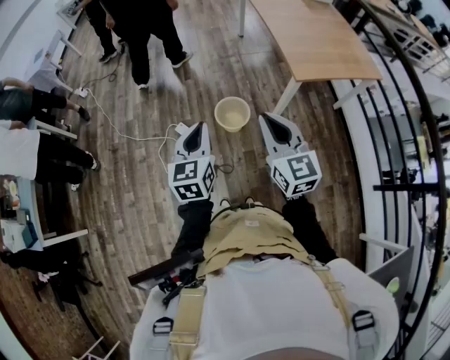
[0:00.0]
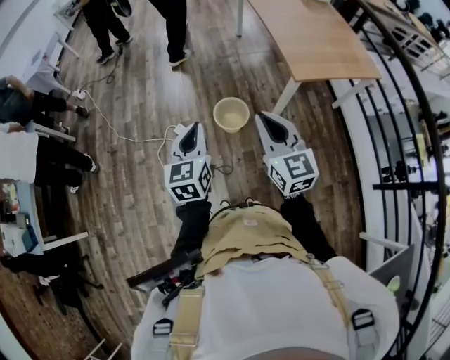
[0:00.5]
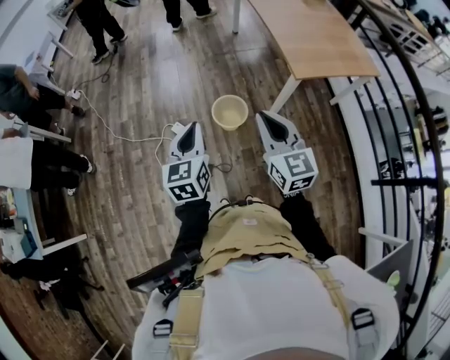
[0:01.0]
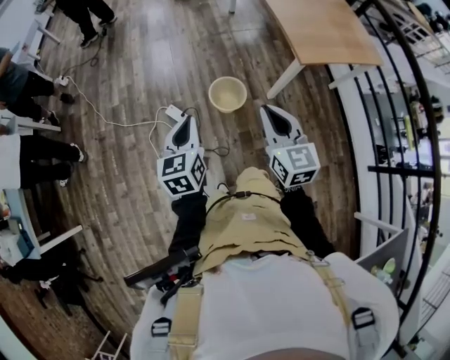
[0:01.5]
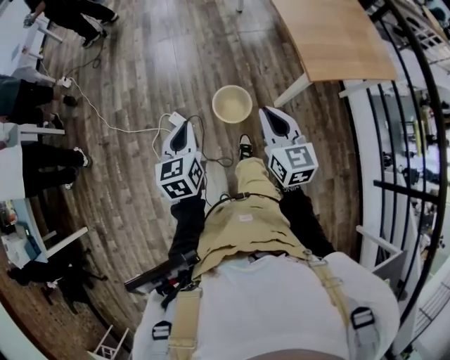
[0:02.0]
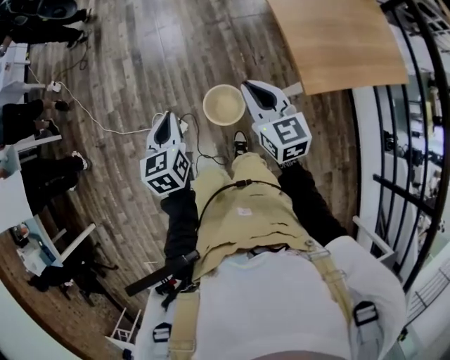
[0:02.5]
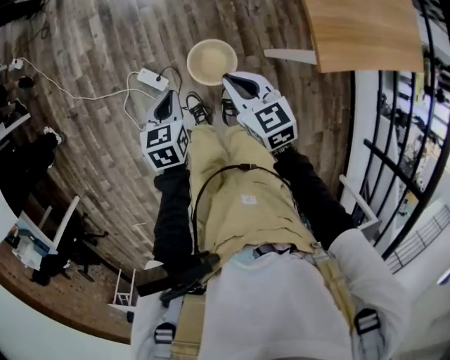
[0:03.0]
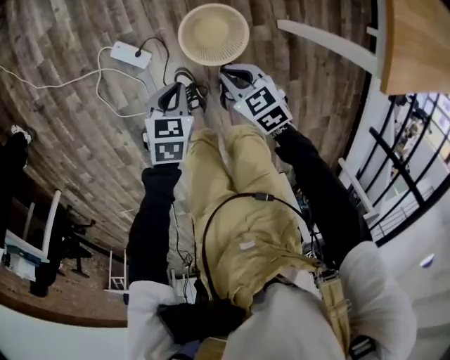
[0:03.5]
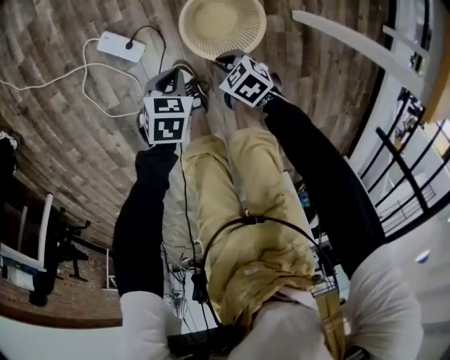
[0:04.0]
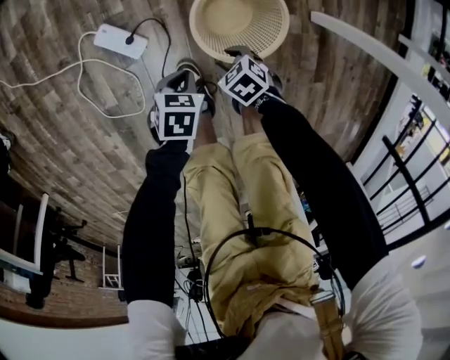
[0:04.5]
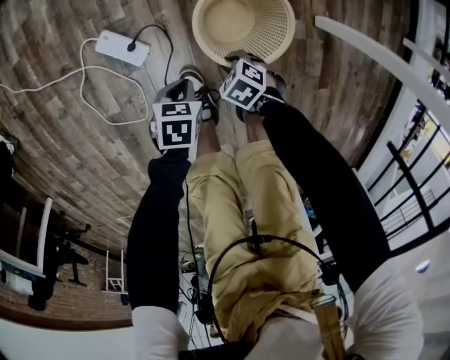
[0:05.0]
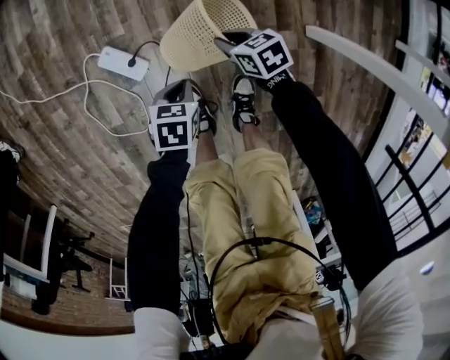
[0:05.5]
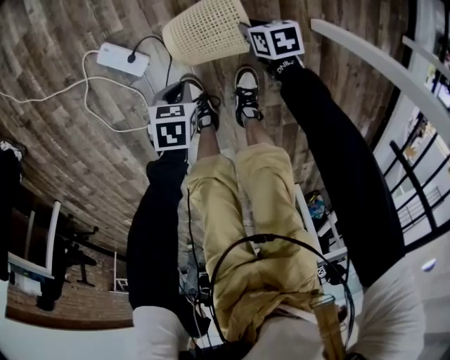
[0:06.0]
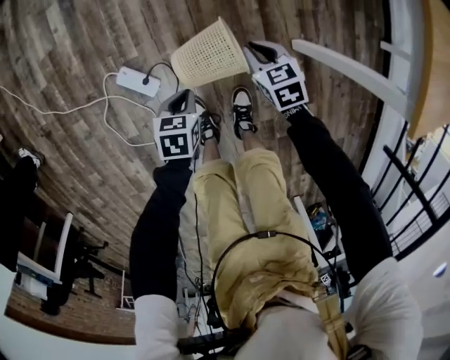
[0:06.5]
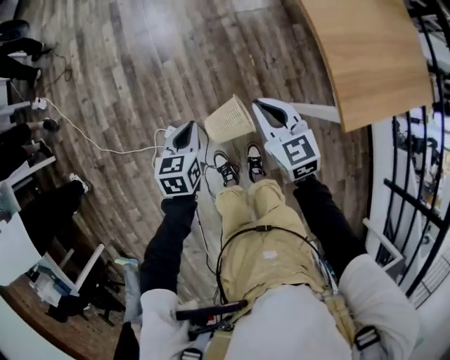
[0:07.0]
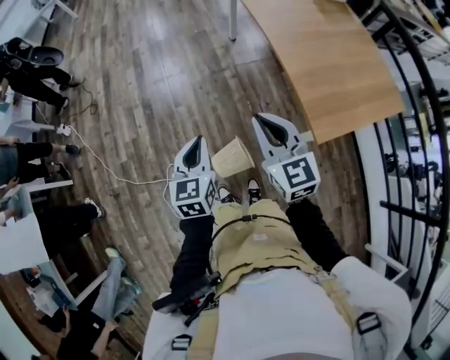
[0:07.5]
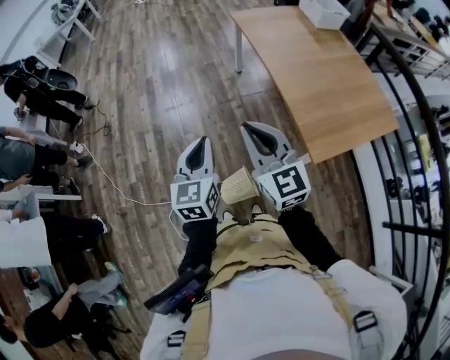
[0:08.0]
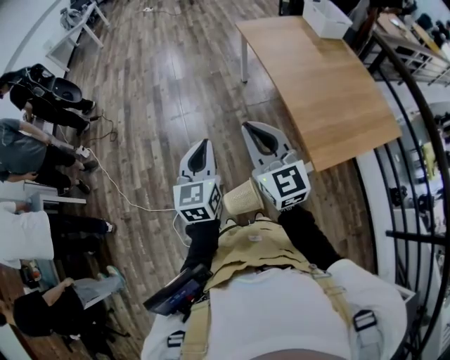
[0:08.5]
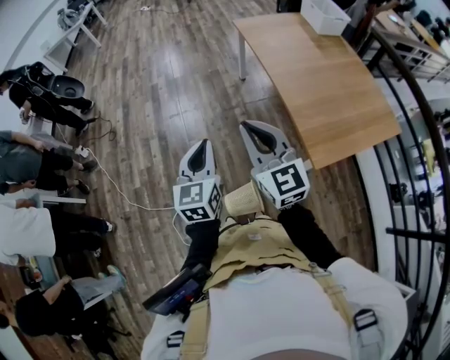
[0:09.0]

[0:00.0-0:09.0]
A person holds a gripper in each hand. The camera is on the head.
0:00.0 to 0:02.0: The two grippers go approximately 20 cm forward and downward.
0:02.0 to 0:04.5: The two grippers go approximately 80 cm downward. The right gripper tips its fingers downward by some 50 degrees, and opens; the left gripper angles its fingers downward, by roughly 40 degrees.
0:04.5 to 0:07.0: Both grippers move upward, roughly 60 cm. The left gripper changes its angle by approximately 30 degrees. Meanwhile the right gripper points its fingers approximately 40 degrees further upward, and closes up.
0:07.0 to 0:09.0: Both grippers move upward, roughly 35 cm. The right gripper points its fingers approximately 30 degrees further upward. Meanwhile the left gripper tilts its fingers approximately 30 degrees upward.

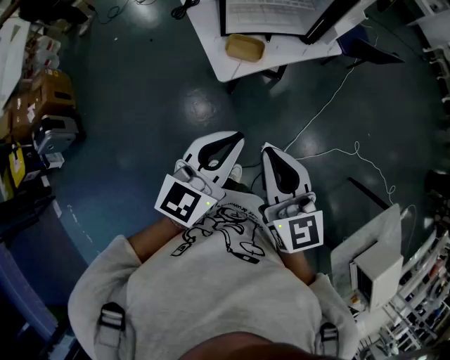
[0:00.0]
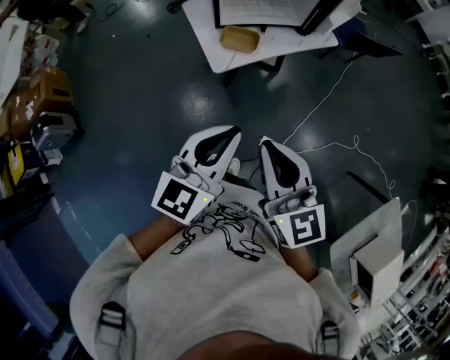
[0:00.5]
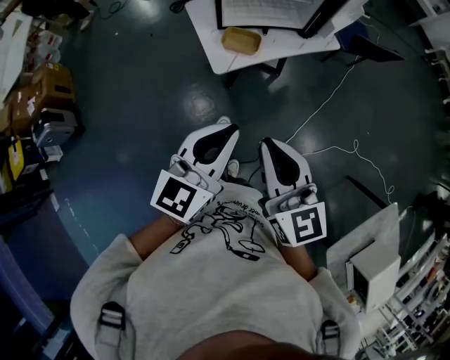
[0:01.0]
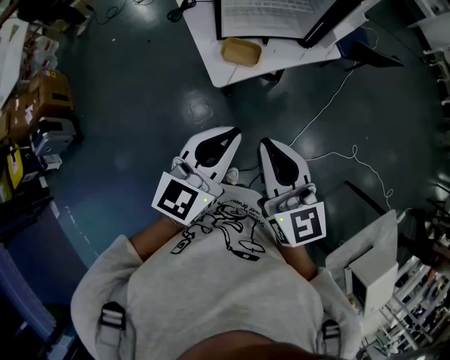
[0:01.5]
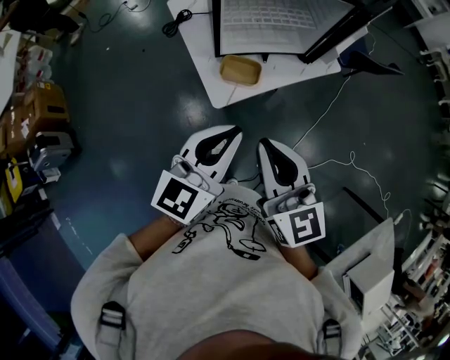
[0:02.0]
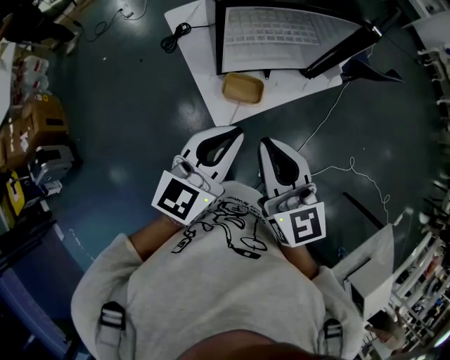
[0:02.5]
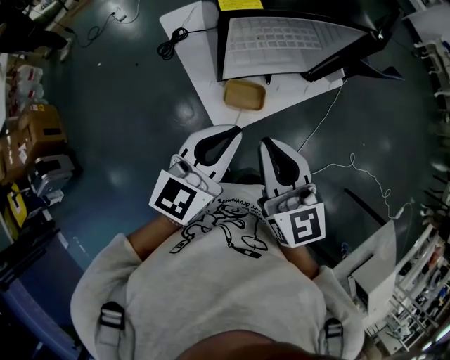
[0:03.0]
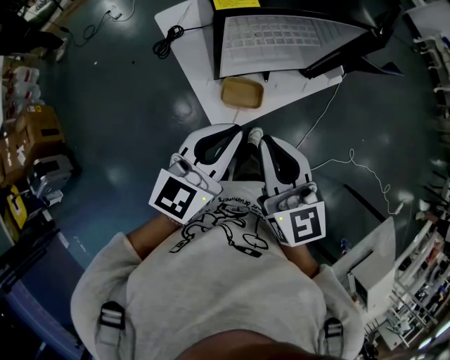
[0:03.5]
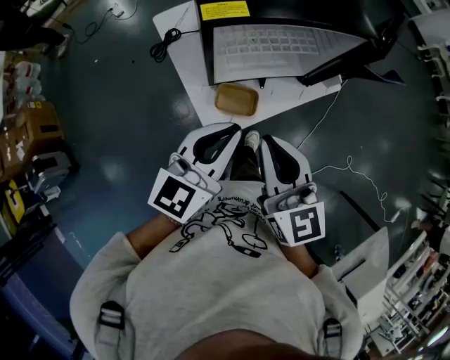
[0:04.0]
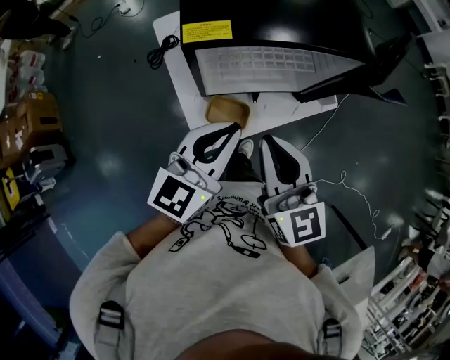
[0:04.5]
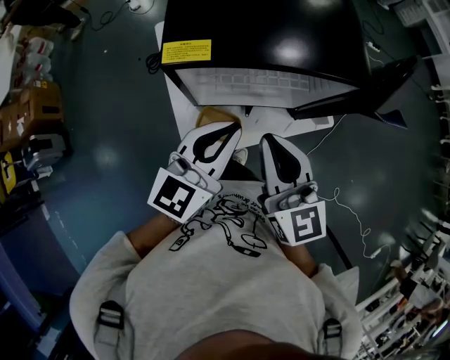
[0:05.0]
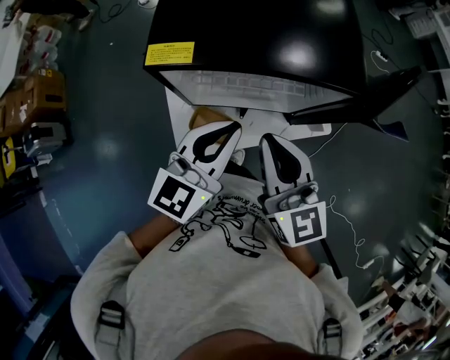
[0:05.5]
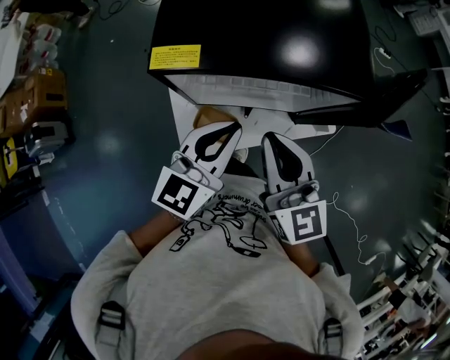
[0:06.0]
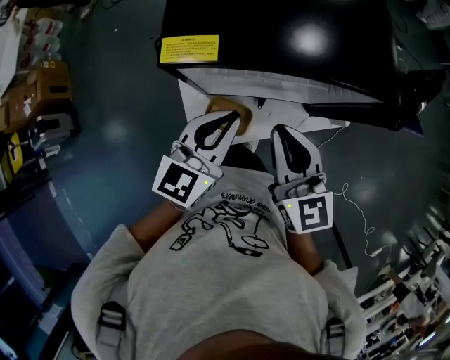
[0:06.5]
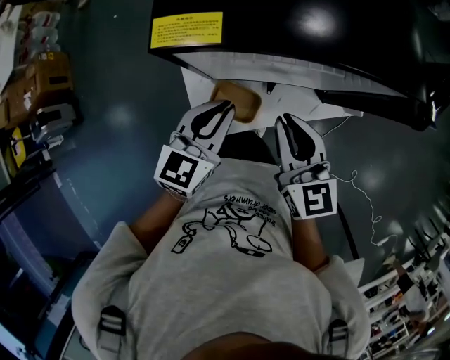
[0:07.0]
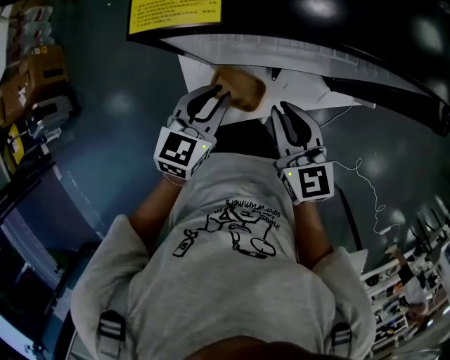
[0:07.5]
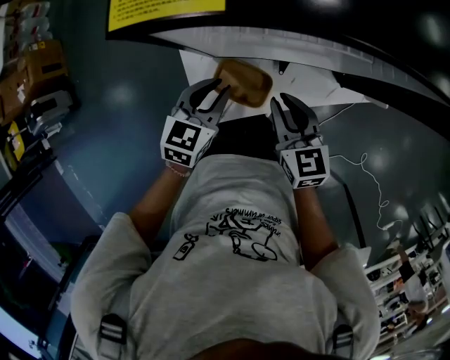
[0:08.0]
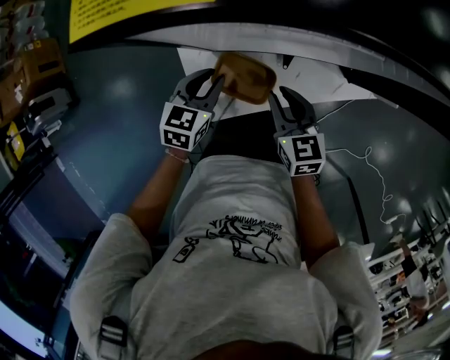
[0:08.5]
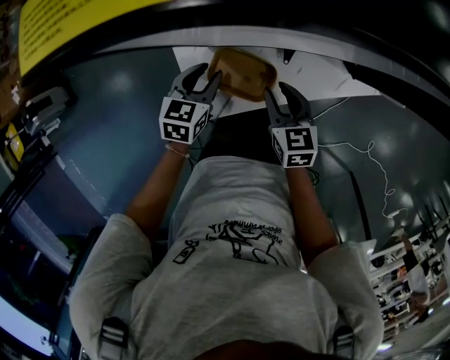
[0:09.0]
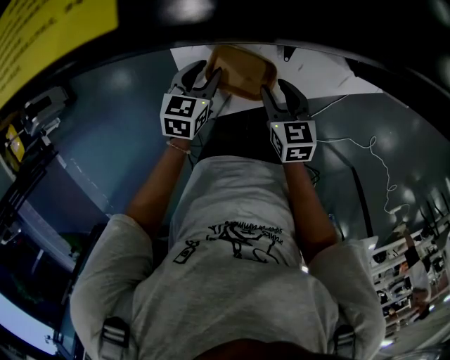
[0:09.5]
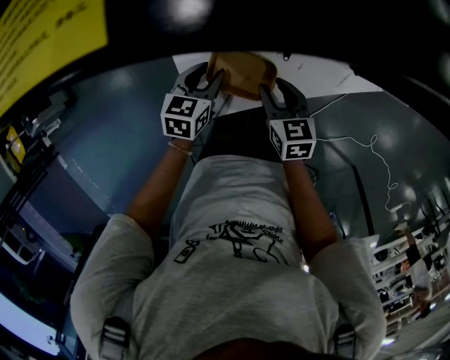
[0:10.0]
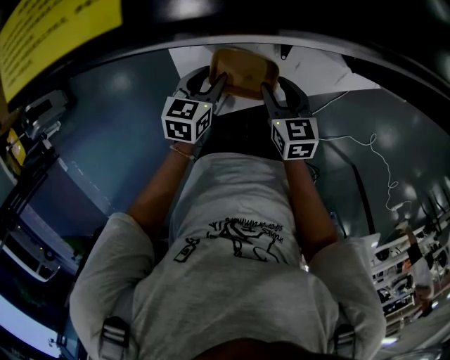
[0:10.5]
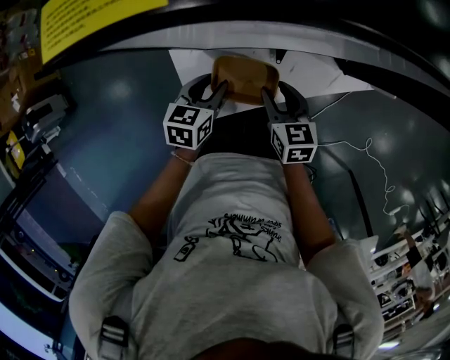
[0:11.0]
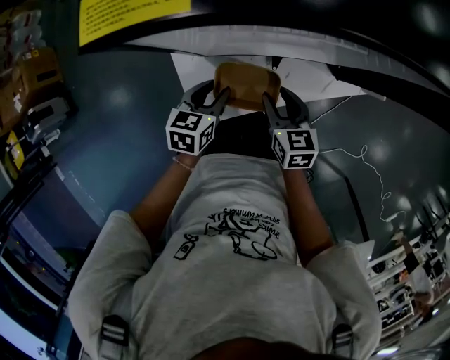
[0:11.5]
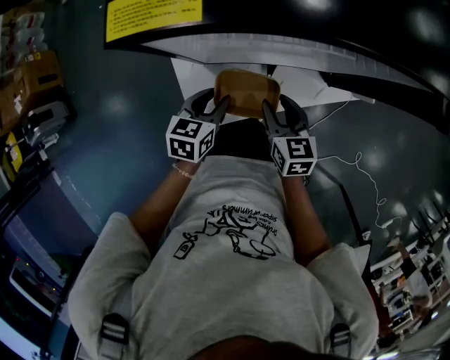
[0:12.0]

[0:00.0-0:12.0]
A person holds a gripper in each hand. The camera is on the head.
0:00.0 to 0:02.0: Both grippers travel together forward, some 15 cm.
0:02.0 to 0:04.0: The grippers both shift forward by approximately 15 cm.
0:04.0 to 0:06.0: Both grippers travel together forward and to the right, some 15 cm.
0:06.0 to 0:08.0: The two grippers go roughly 25 cm downward. The right gripper swivels approximately 20 degrees. Meanwhile the left gripper turns by roughly 30 degrees.
0:08.0 to 0:10.0: The grippers both shift downward by approximately 15 cm. The right gripper opens its fingers.
0:10.0 to 0:12.0: Both grippers move upward, some 10 cm.

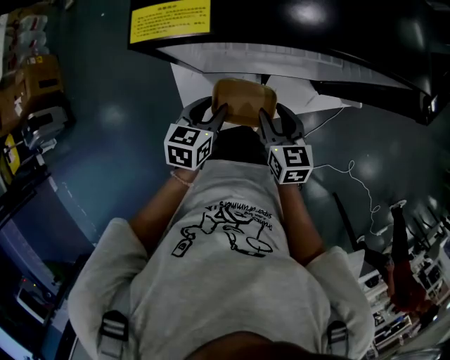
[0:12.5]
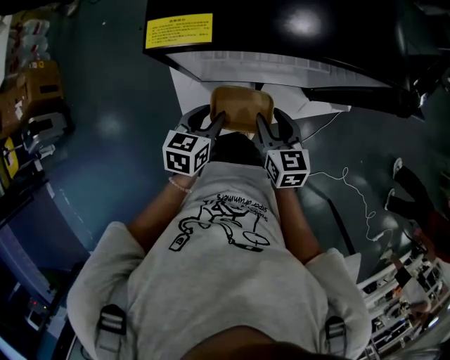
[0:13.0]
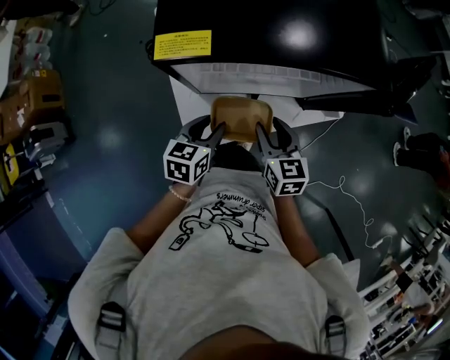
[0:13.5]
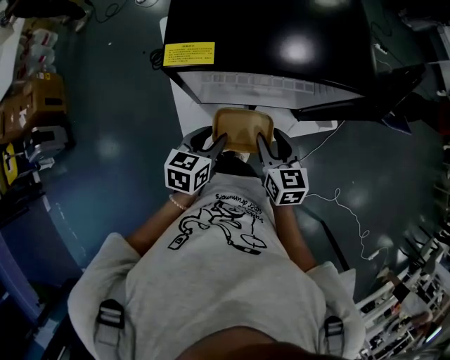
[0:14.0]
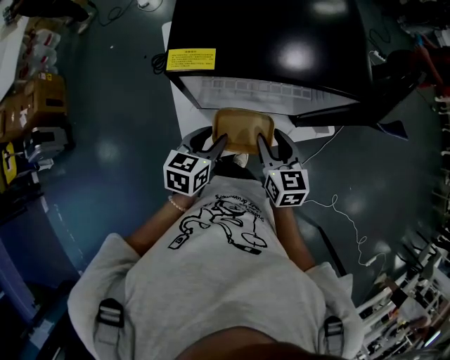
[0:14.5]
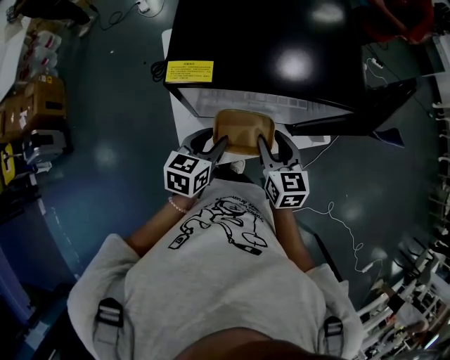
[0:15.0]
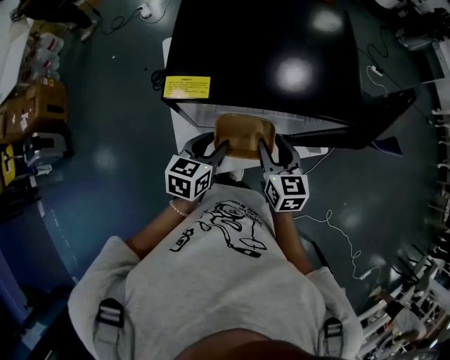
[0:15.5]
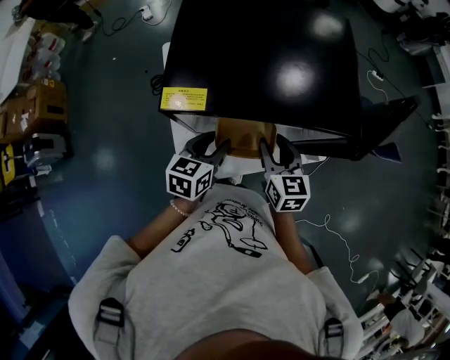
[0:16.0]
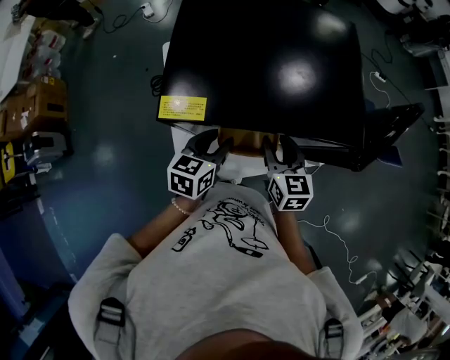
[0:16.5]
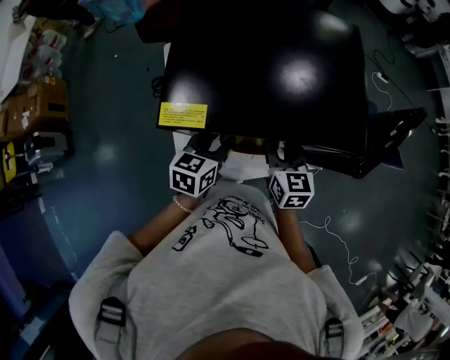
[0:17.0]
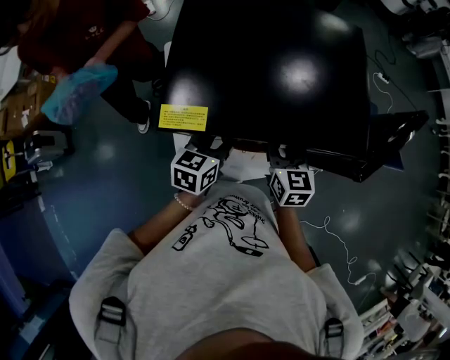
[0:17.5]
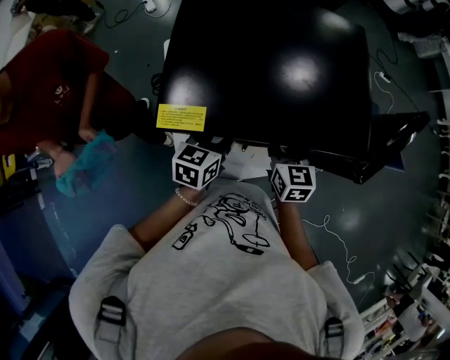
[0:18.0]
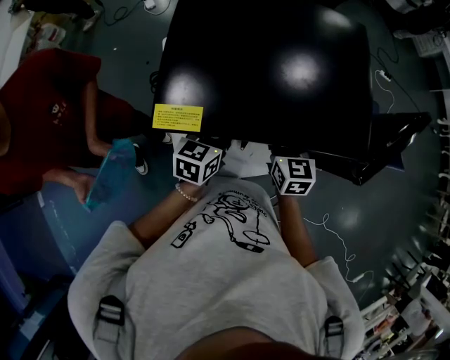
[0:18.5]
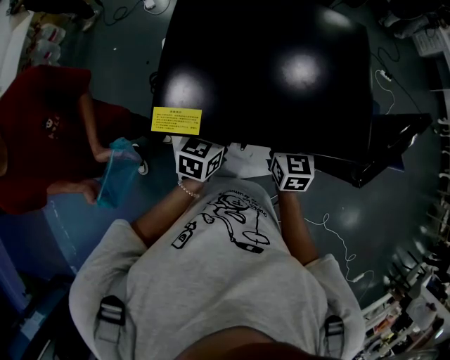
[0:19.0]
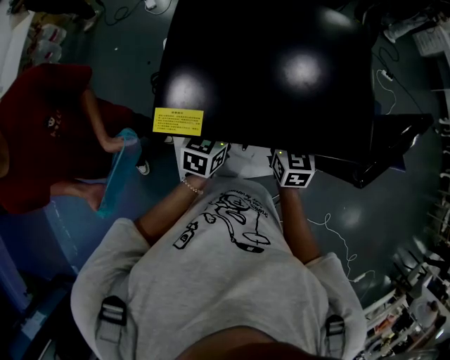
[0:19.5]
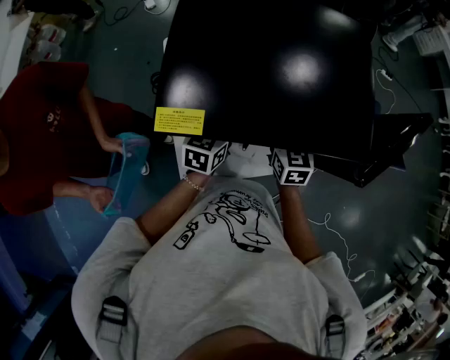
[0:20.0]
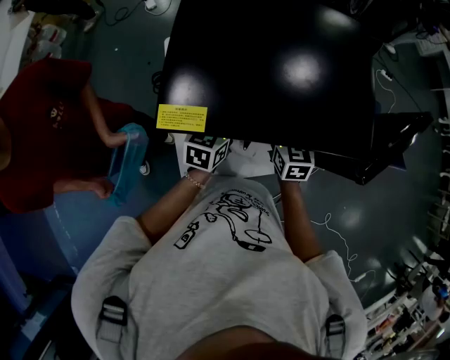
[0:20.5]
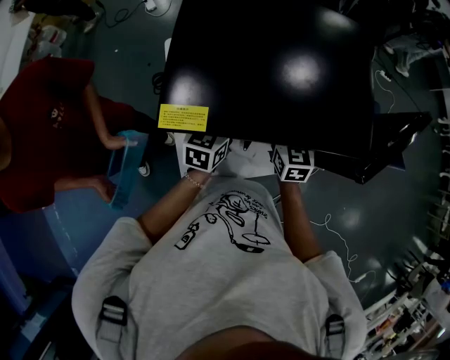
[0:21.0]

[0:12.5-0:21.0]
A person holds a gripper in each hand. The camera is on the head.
0:12.5 to 0:14.5: The grippers both shift upward by about 10 cm.
0:14.5 to 0:16.5: Both grippers move forward, approximately 10 cm.
0:16.5 to 0:19.0: Both grippers move forward, approximately 5 cm.
0:19.0 to 0:21.0: The grippers stay close to where they were, moving slightly.
